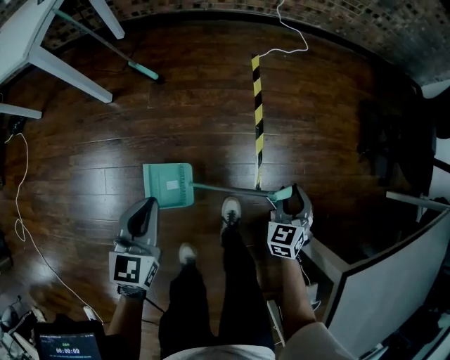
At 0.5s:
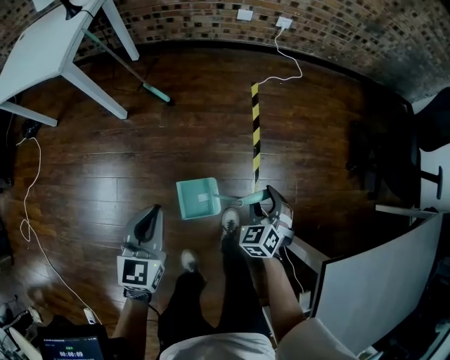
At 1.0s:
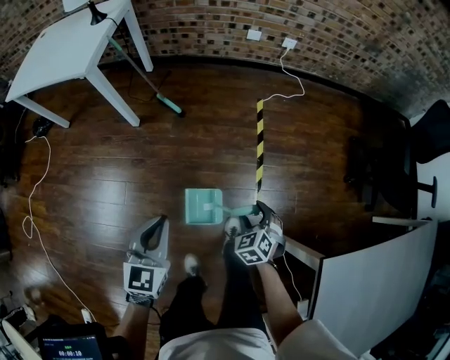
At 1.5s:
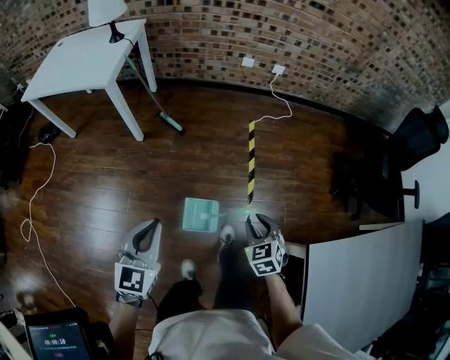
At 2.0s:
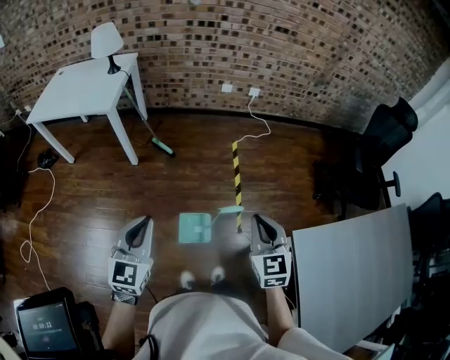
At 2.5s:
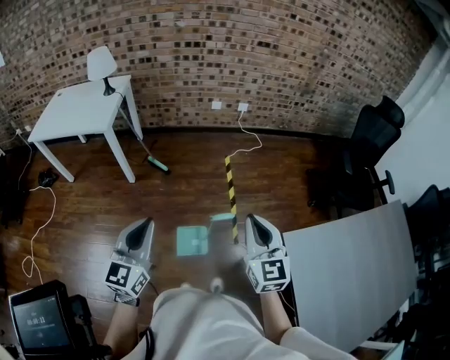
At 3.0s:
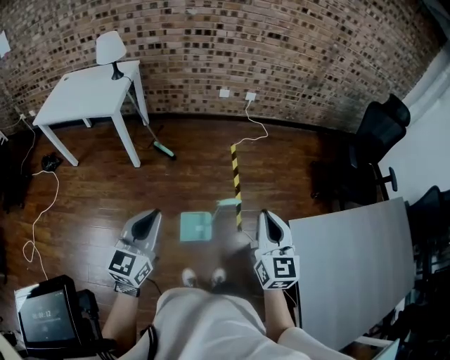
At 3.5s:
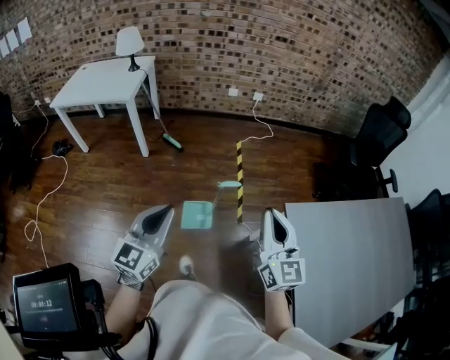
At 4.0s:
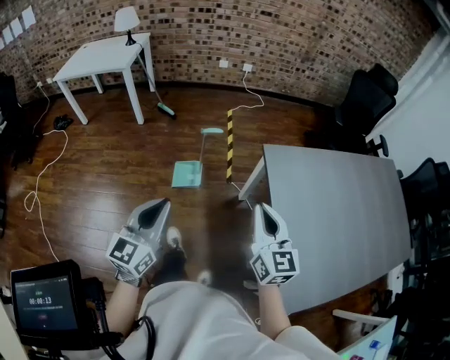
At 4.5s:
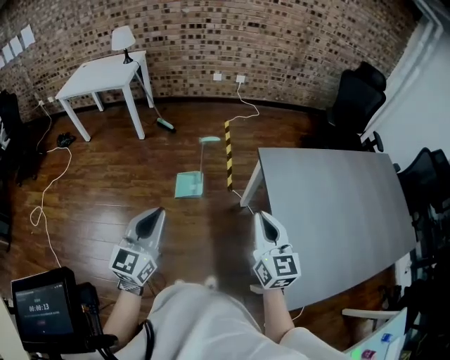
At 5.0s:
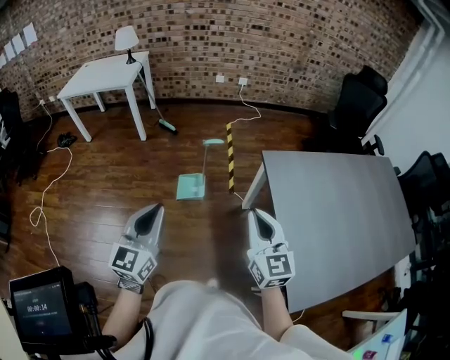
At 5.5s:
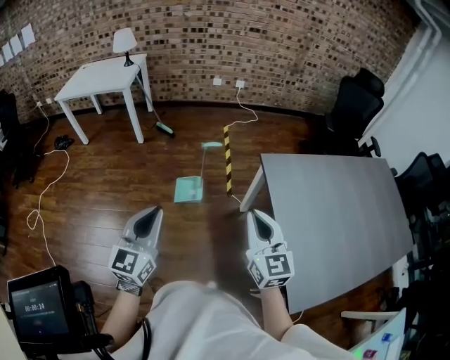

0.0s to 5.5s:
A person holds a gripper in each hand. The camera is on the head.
0.0s to 2.0s: The left gripper moves upward and backward, about 40 cm, while the right gripper is displaced upward by approximately 50 cm, turns by about 30 degrees, and closes.
2.0s to 3.5s: The right gripper moves backward and upward, roughly 20 cm, and rotates roughly 30 degrees; the left gripper shifts about 20 cm backward and to the right.
3.5s to 5.5s: The two grippers go approximately 25 cm backward.

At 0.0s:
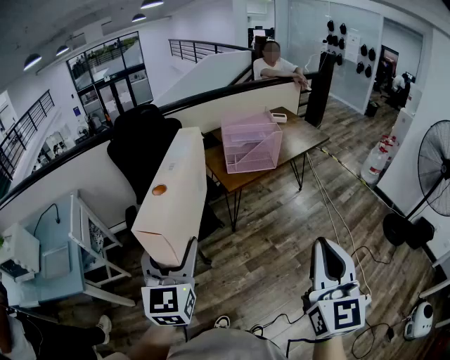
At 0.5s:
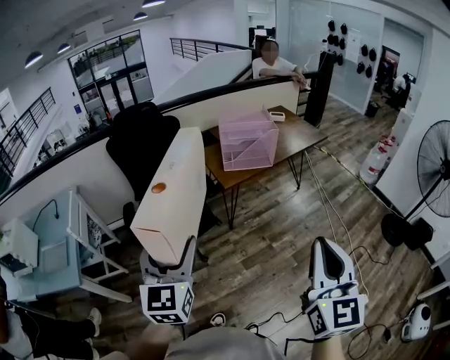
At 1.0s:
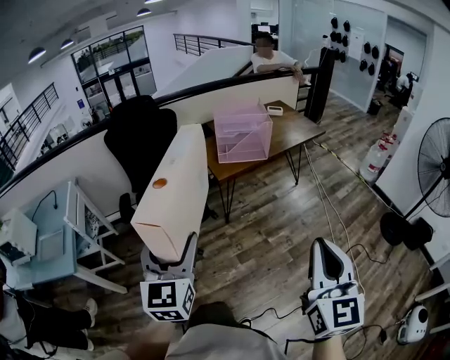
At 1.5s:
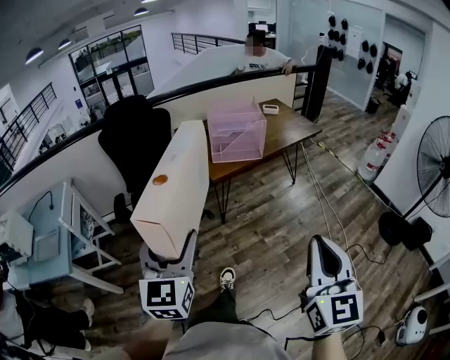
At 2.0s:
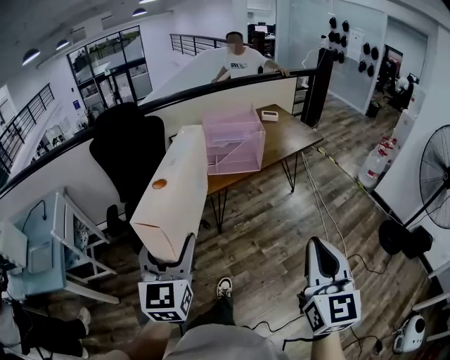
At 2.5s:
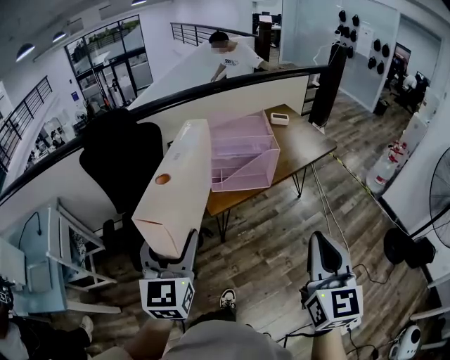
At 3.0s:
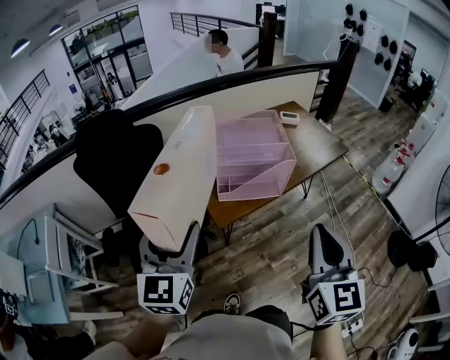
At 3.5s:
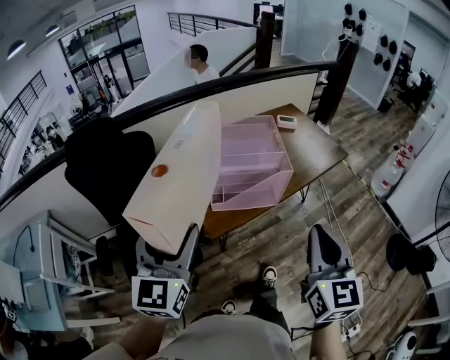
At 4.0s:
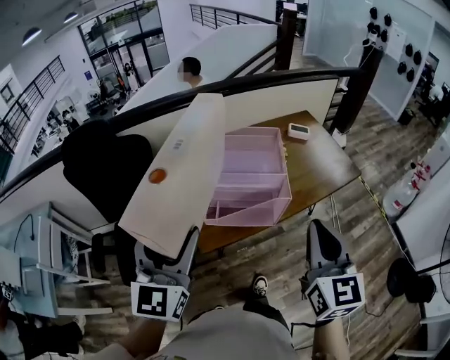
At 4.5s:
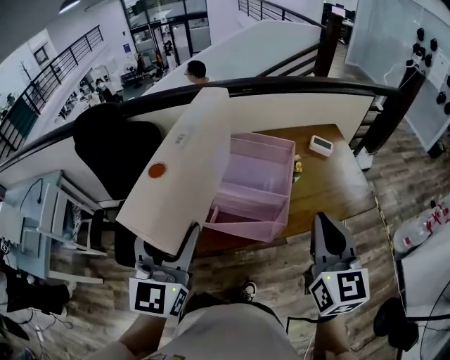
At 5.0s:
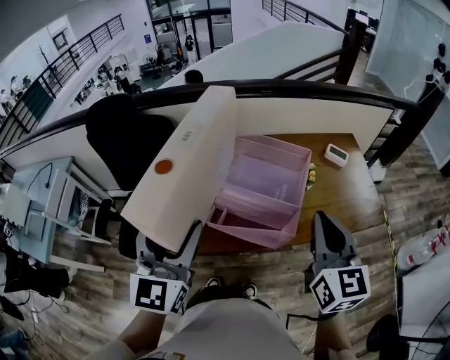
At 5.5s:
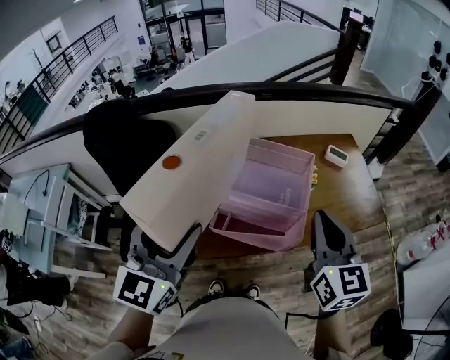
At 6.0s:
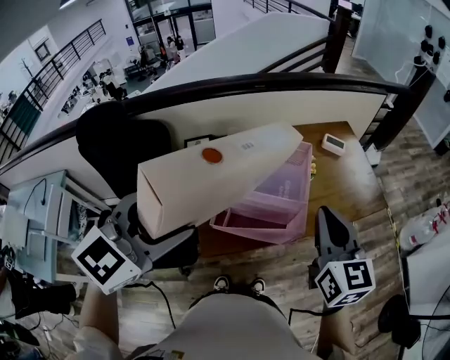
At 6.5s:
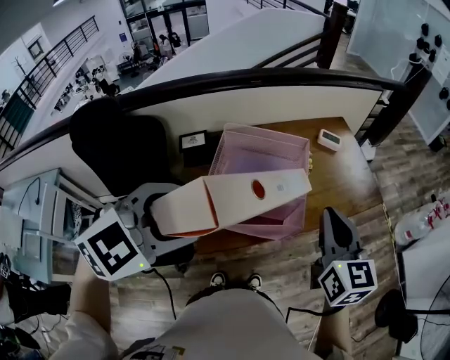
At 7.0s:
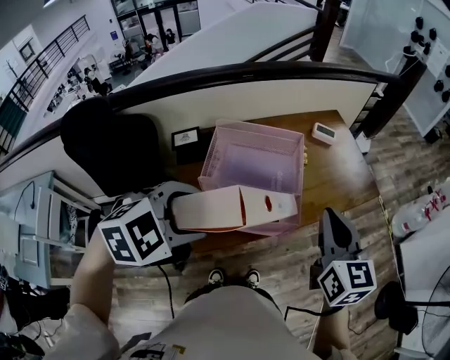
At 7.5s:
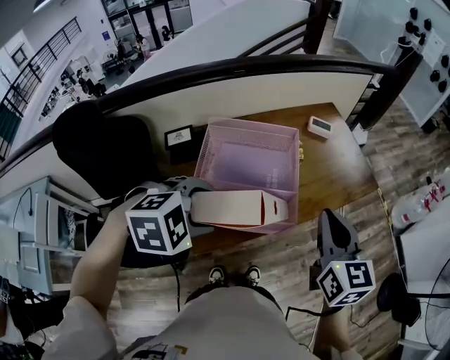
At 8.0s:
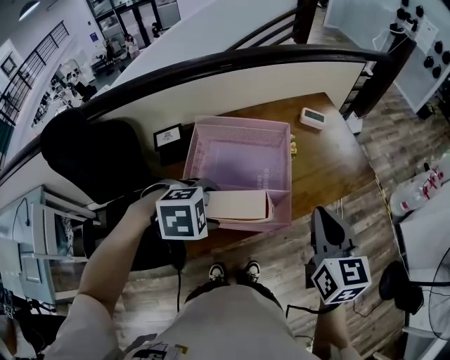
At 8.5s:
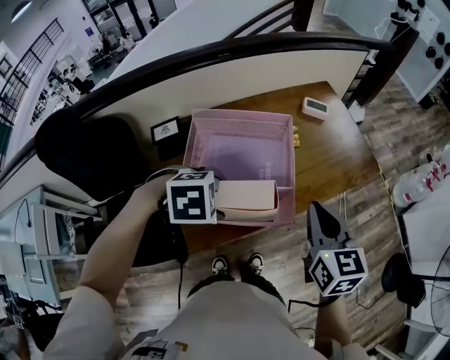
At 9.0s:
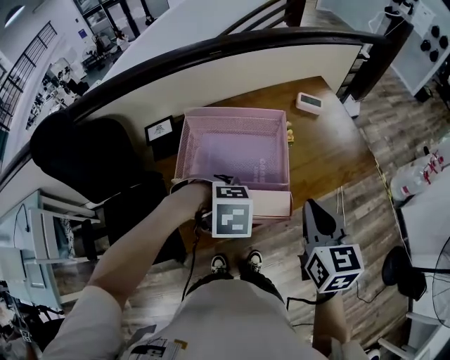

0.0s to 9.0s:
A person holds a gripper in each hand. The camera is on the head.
0.0s to 2.0s: Both grippers travel together to the right and forward, about 15 cm.
2.0s to 4.5s: The two grippers travel together, forward, some 60 cm. The right gripper turns by about 20 degrees.
4.5s to 7.0s: The right gripper ends up roughly 5 cm from where it was. Meanwhile the left gripper goes roughly 5 cm downward, and angles its fingers downward, by approximately 50 degrees.
7.0s to 9.0s: The left gripper shifts some 15 cm downward, and tips its fingers downward by approximately 30 degrees. The right gripper moves downward, about 10 cm.

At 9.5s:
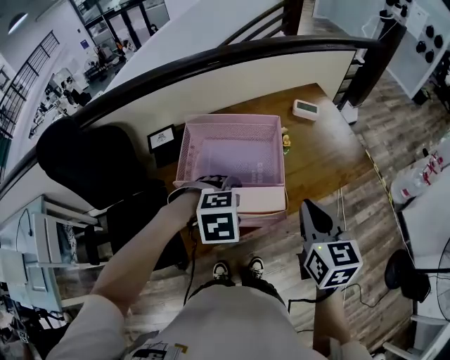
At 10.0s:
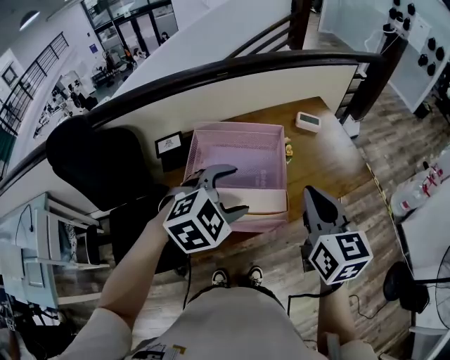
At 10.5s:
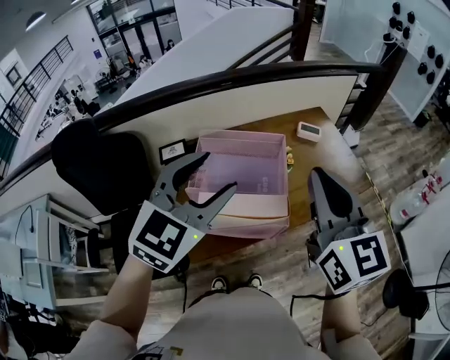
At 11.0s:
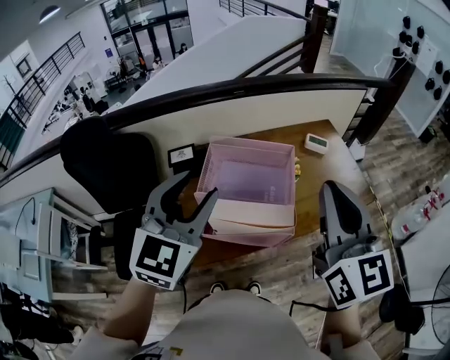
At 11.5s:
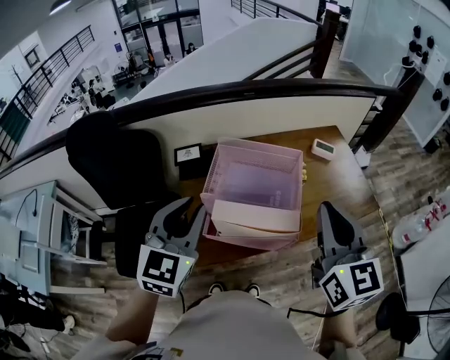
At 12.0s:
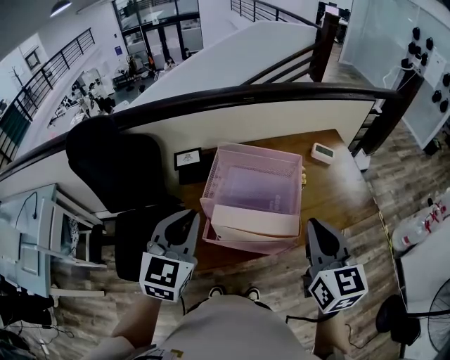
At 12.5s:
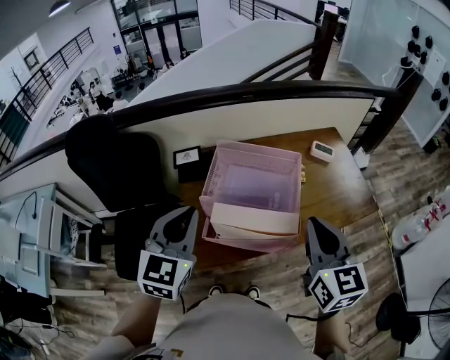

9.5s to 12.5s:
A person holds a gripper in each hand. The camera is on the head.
9.5s to 11.0s: The left gripper travels upward and to the left by roughly 25 cm, tilts its fingers about 60 degrees upward, and closes. Meanwhile the right gripper moves upward, roughly 20 cm, and swivels about 30 degrees.
11.0s to 12.5s: Both grippers travel together downward, some 10 cm. The left gripper closes up.

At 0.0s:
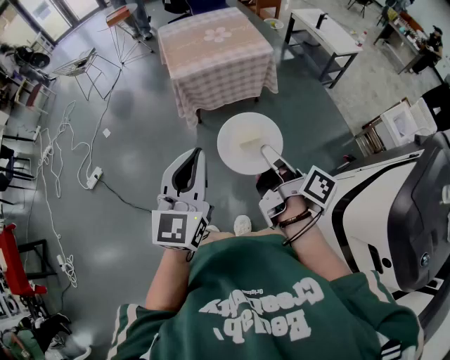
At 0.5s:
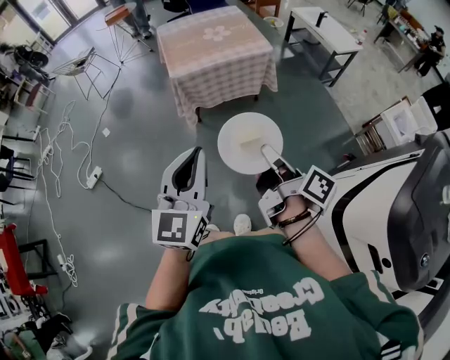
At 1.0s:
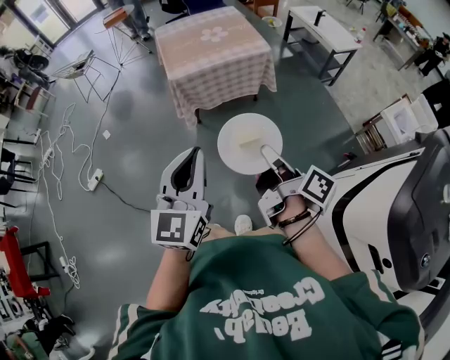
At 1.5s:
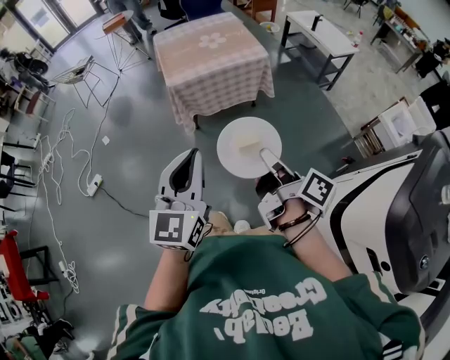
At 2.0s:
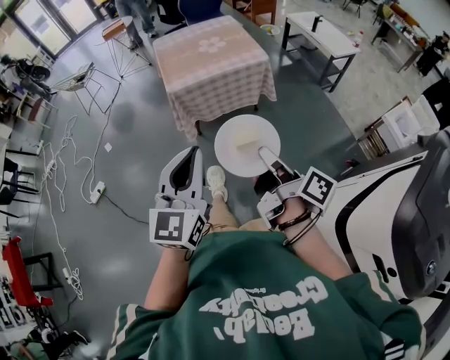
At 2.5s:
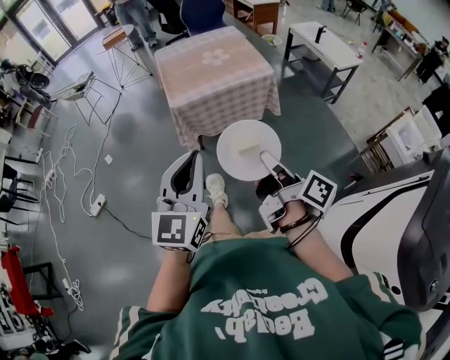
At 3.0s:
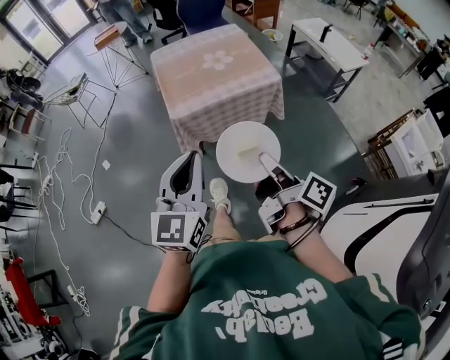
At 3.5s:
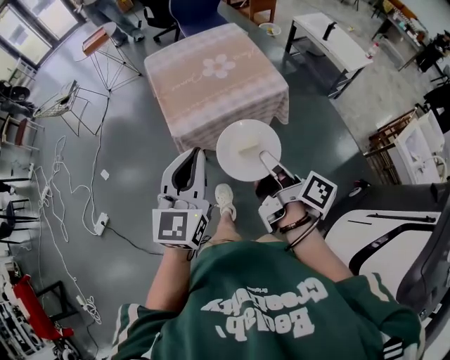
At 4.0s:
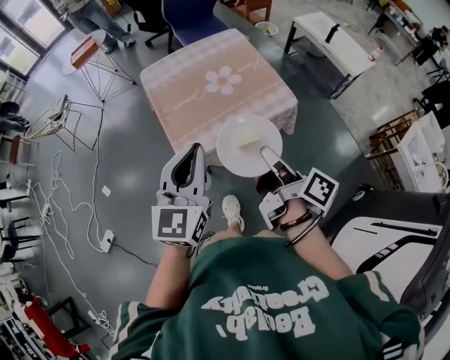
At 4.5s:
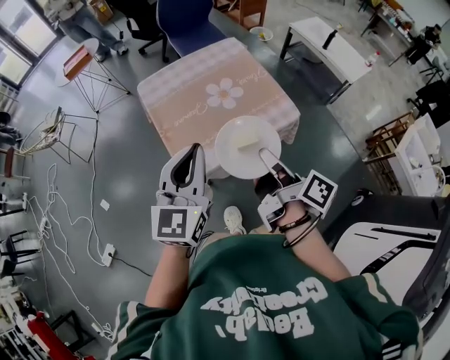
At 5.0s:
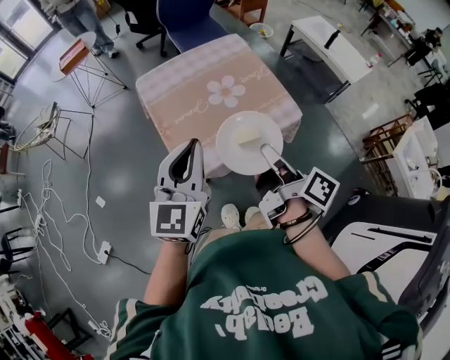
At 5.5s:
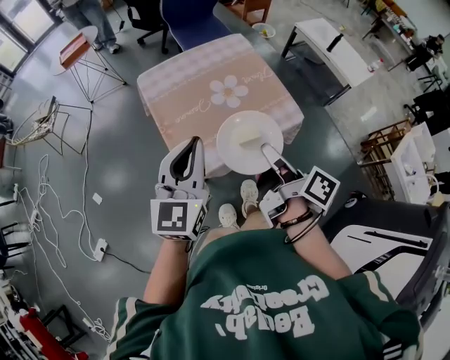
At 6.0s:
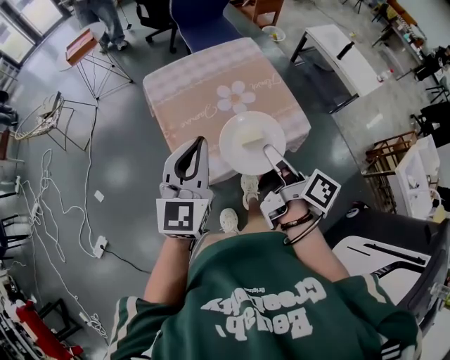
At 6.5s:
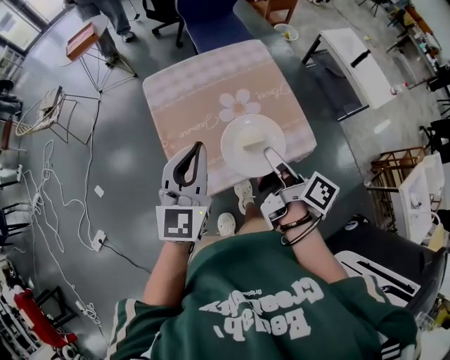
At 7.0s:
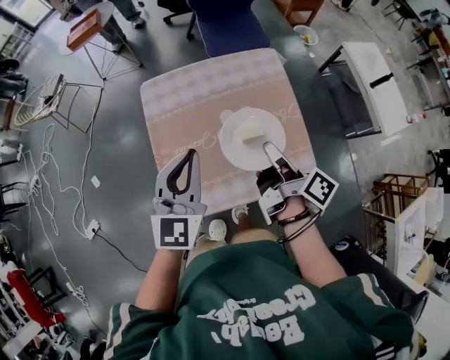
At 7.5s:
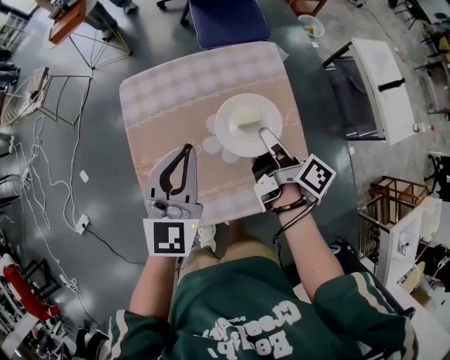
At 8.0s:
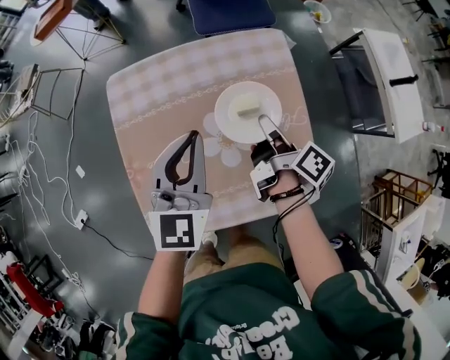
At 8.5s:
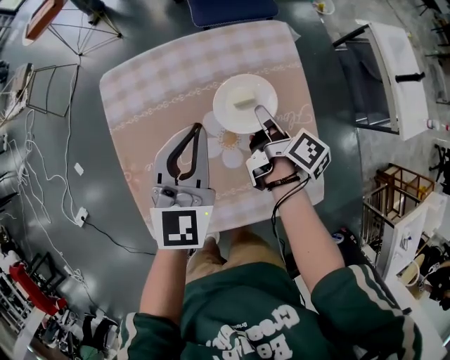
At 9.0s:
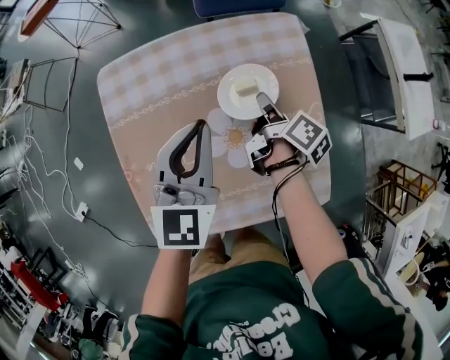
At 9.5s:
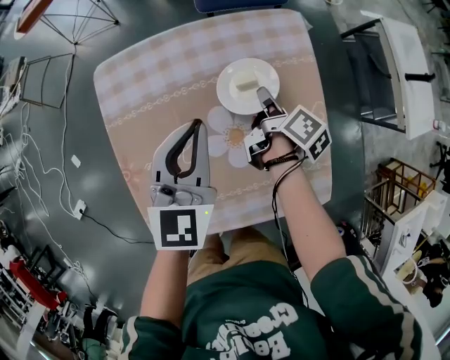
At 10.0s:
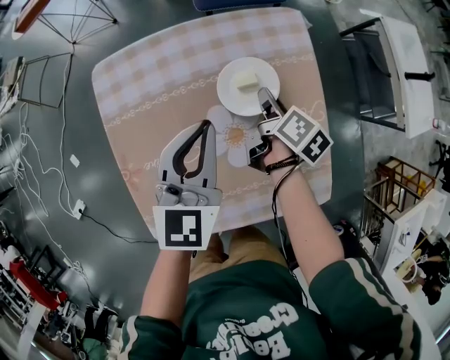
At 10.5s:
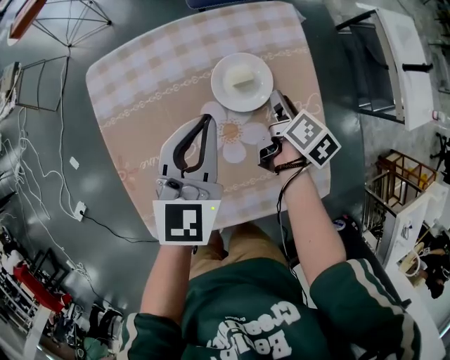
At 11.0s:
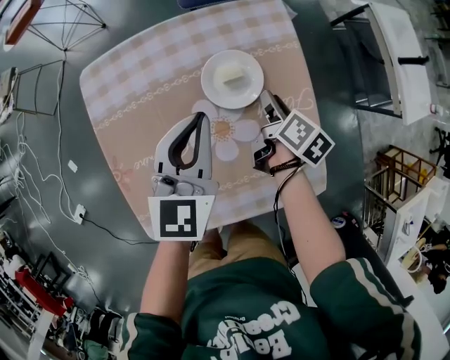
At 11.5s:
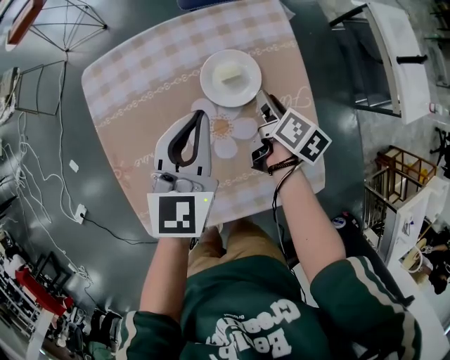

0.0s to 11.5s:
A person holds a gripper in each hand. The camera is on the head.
0.0s to 2.0s: The grippers stay close to where they were, moving slightly.
2.0s to 4.0s: The pair of grippers is taken forward, about 40 cm.
4.0s to 6.0s: Both grippers move forward, approximately 15 cm.
6.0s to 7.5s: The right gripper moves forward and downward, approximately 35 cm, while the left gripper shifts approximately 25 cm forward, downward and to the right.
7.5s to 9.5s: The two grippers go approximately 15 cm downward and forward.
9.5s to 11.5s: The right gripper travels to the right by some 5 cm, and opens up.
